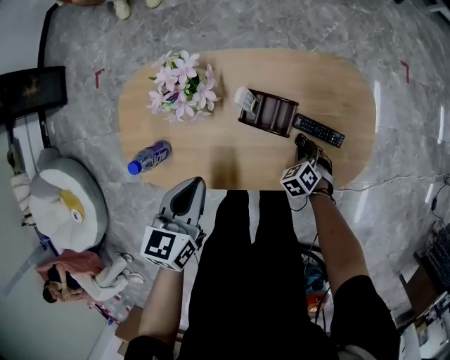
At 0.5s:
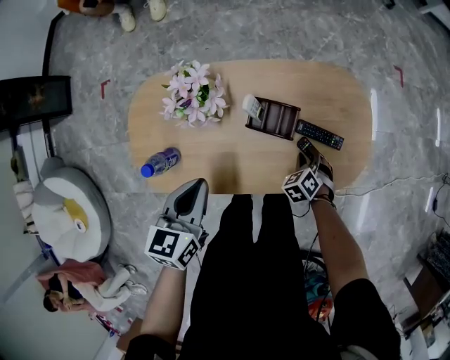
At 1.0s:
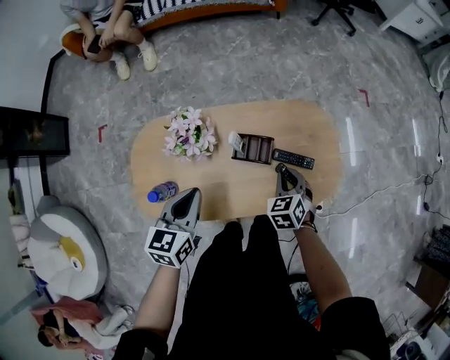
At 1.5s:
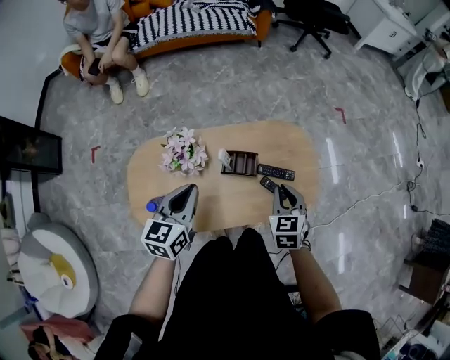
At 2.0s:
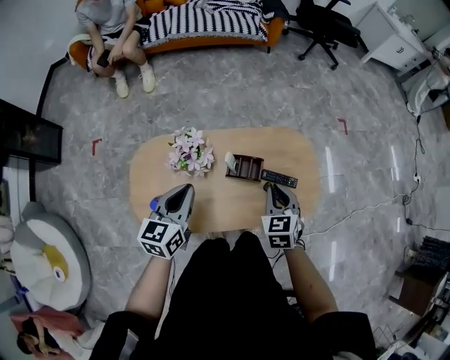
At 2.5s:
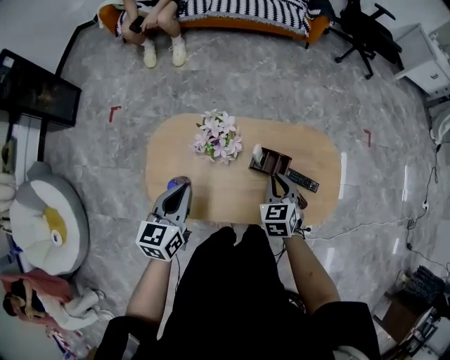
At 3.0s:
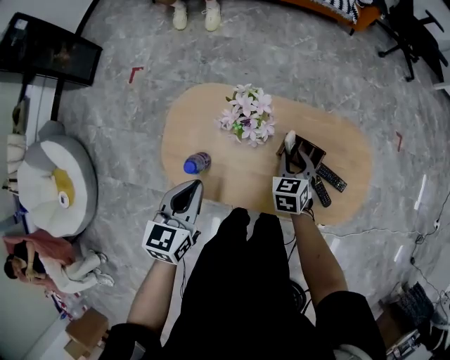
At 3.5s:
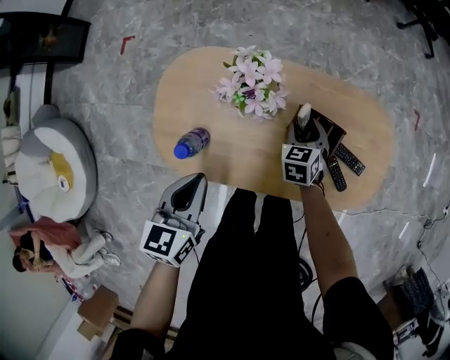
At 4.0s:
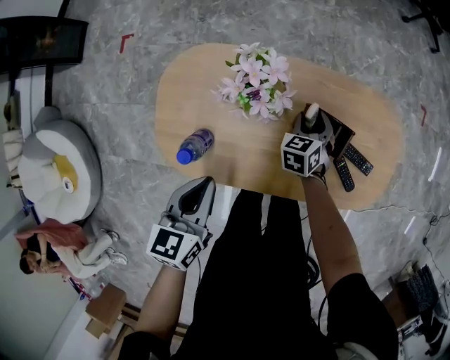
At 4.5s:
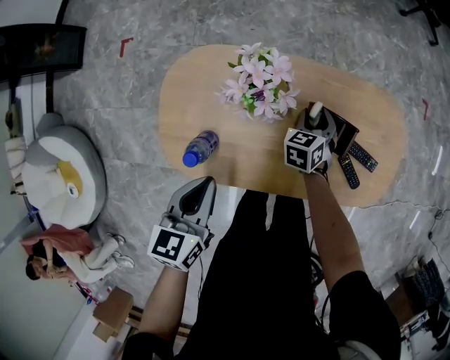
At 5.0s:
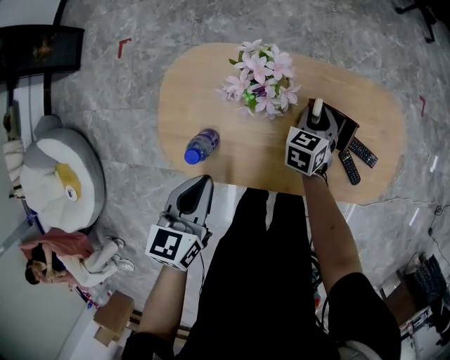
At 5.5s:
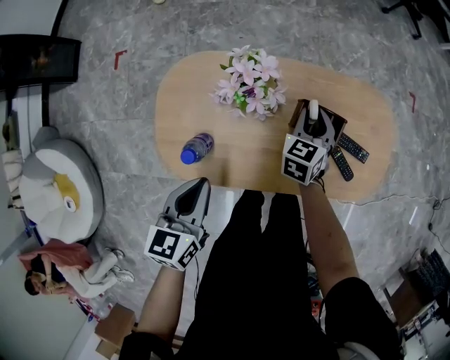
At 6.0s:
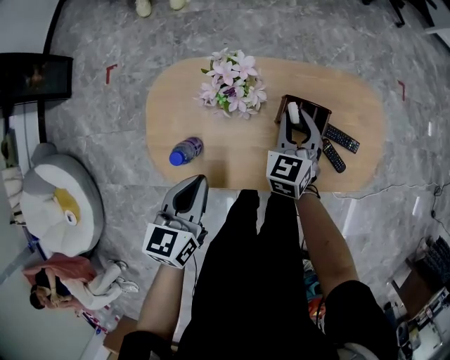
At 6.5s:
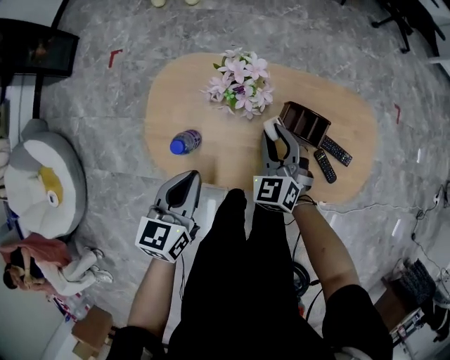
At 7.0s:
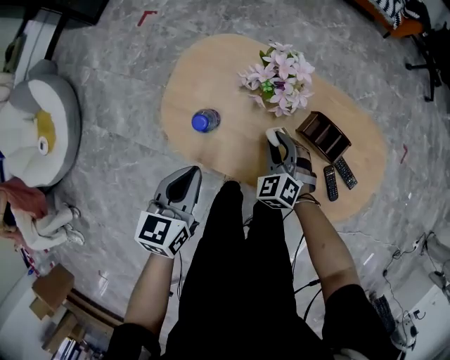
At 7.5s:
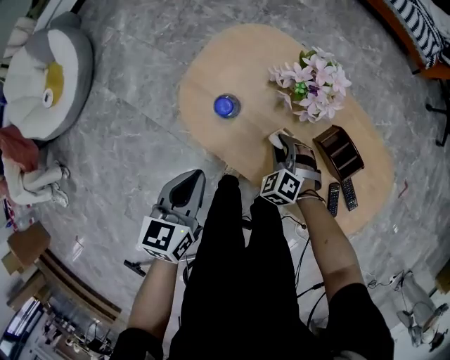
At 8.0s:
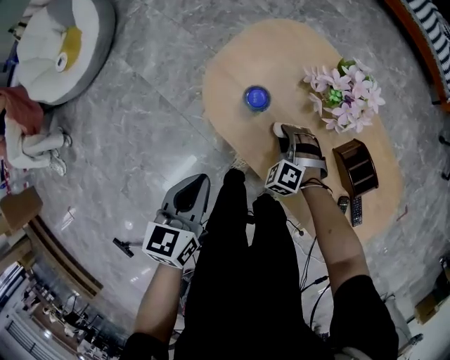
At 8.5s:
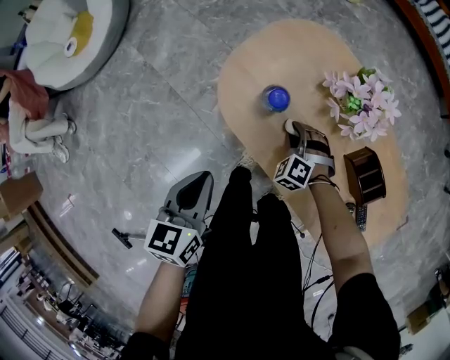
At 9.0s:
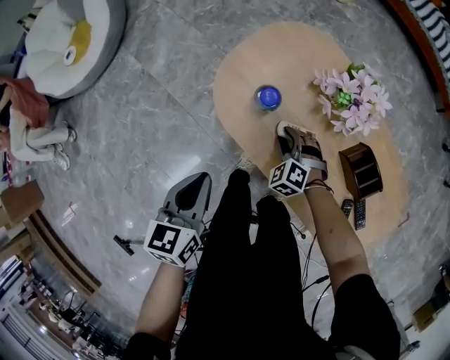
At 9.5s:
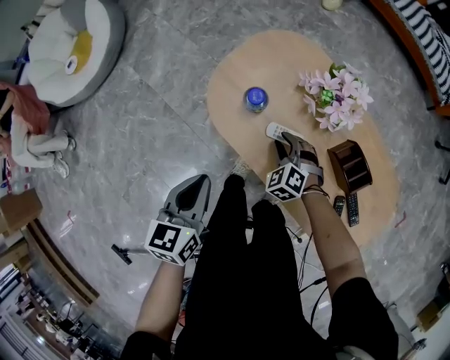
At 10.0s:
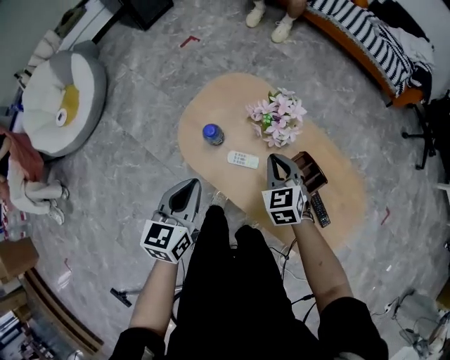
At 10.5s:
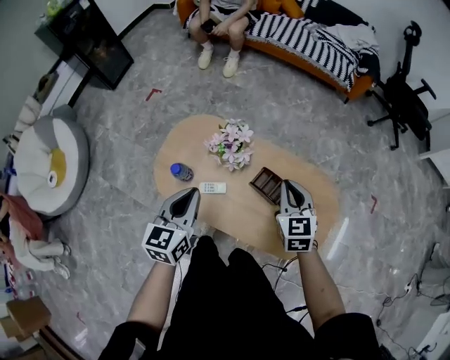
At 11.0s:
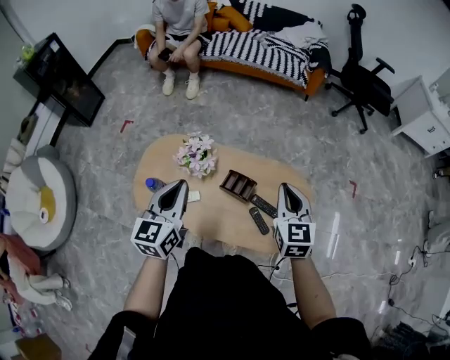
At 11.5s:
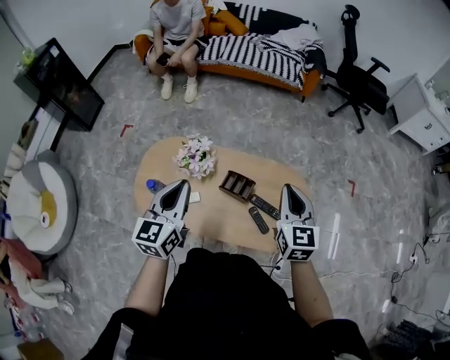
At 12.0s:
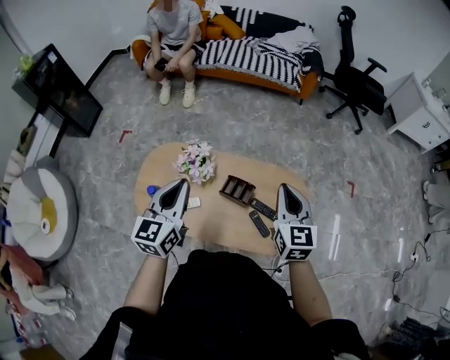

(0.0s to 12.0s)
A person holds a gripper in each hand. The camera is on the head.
0.0s - 2.0s: The right gripper moves upward, about 35 cm, and tilts its fingers roughly 30 degrees upward. The left gripper moves upward and to the left, approximately 15 cm.
2.0s - 4.0s: The left gripper goes approximately 15 cm downward, backward and to the left, and changes its angle by some 20 degrees, while the right gripper heads downward, to the left and forward, covering some 30 cm, and opens its fingers.
4.0s - 6.0s: The right gripper heads upward, covering approximately 15 cm, and closes its fingers.
6.0s - 8.0s: The right gripper shifts by some 30 cm, and rolls counterclockwise, seen from behind, by about 80 degrees. The left gripper moves roughly 20 cm, and swivels approximately 40 degrees.
8.0s - 10.0s: The right gripper heads upward and to the right, covering roughly 25 cm, rolls clockwise, seen from behind, by roughly 50 degrees, and closes. Meanwhile the left gripper heads upward and to the right, covering some 15 cm.
10.0s - 12.0s: The right gripper moves roughly 40 cm, and swivels about 50 degrees. The left gripper changes place by approximately 25 cm, and swivels about 30 degrees.

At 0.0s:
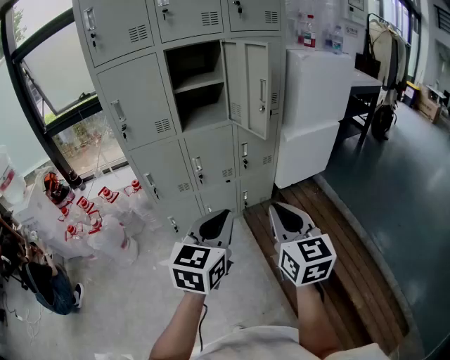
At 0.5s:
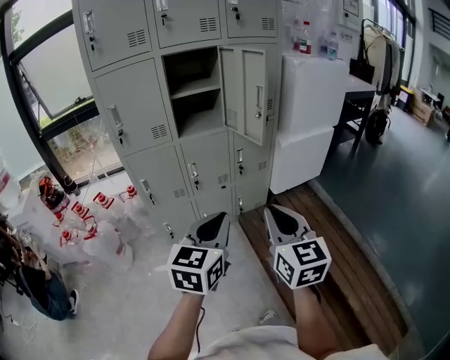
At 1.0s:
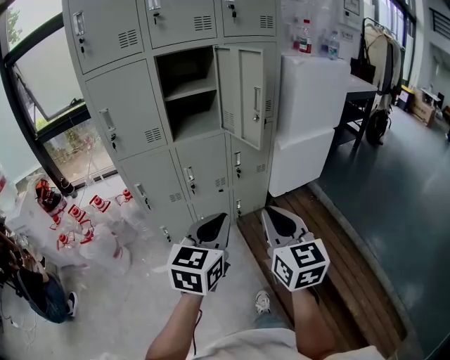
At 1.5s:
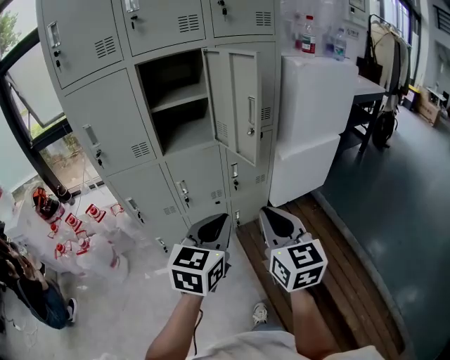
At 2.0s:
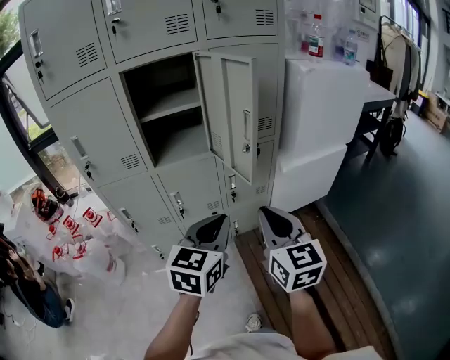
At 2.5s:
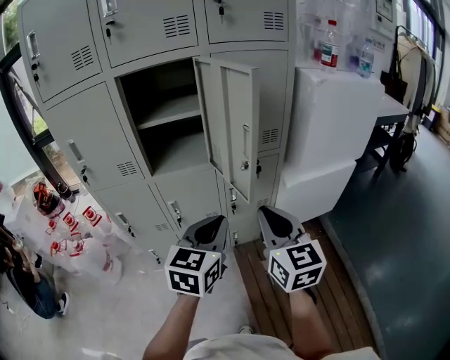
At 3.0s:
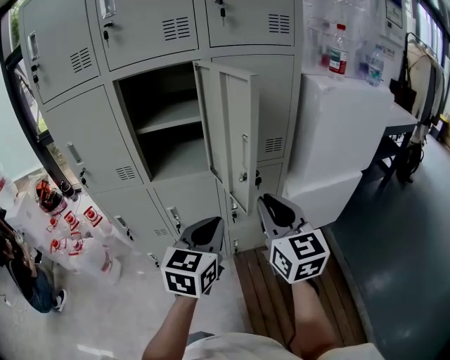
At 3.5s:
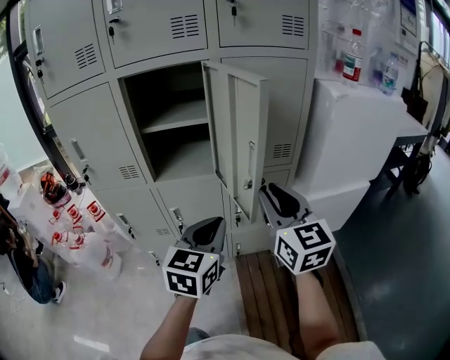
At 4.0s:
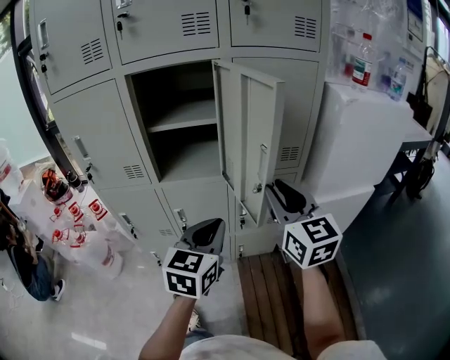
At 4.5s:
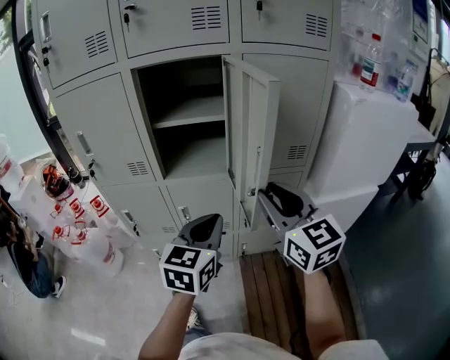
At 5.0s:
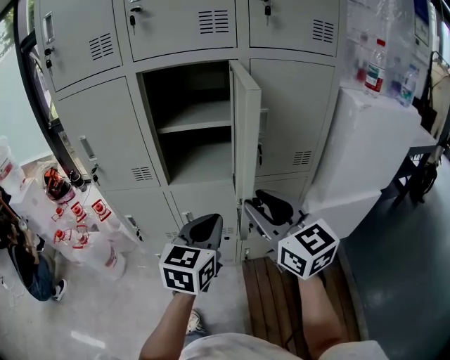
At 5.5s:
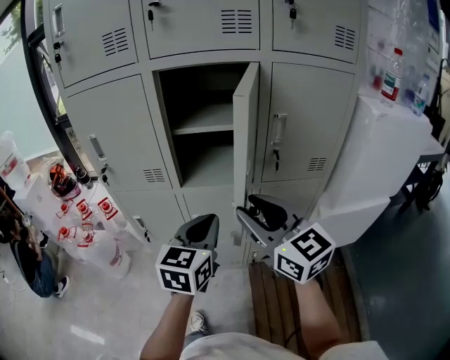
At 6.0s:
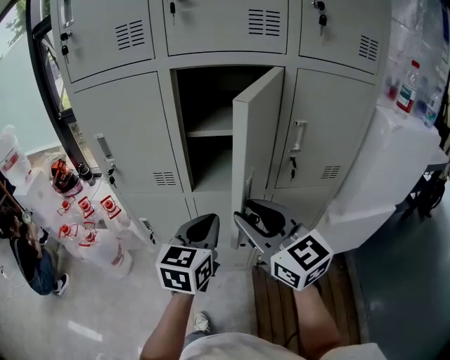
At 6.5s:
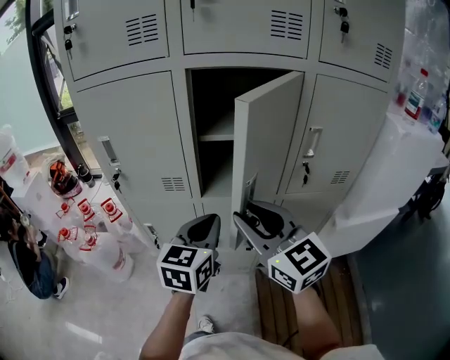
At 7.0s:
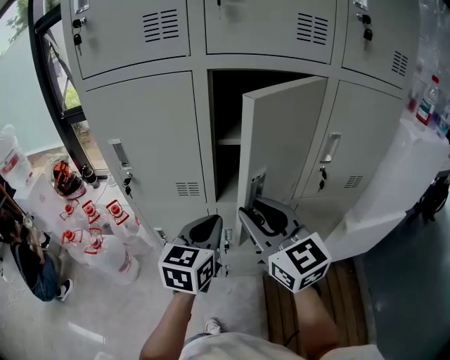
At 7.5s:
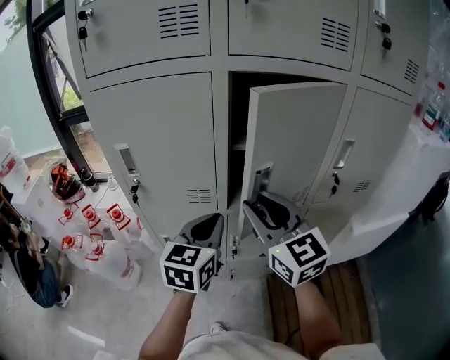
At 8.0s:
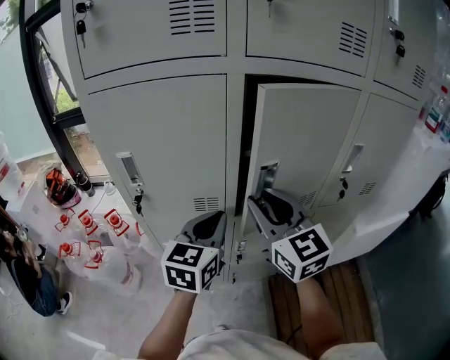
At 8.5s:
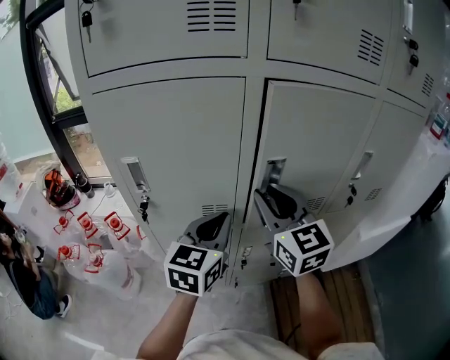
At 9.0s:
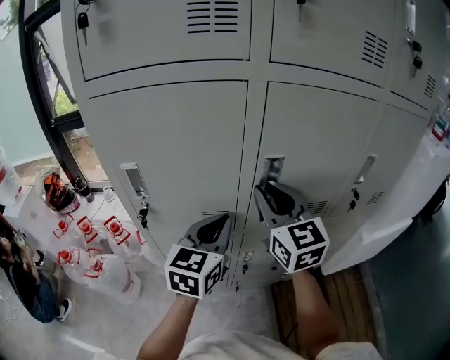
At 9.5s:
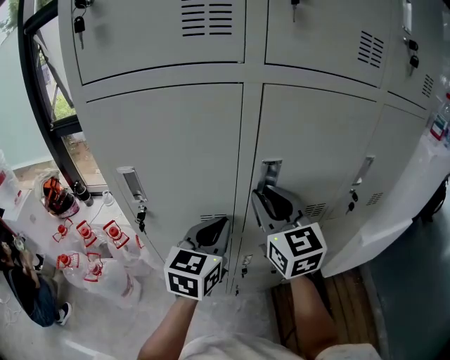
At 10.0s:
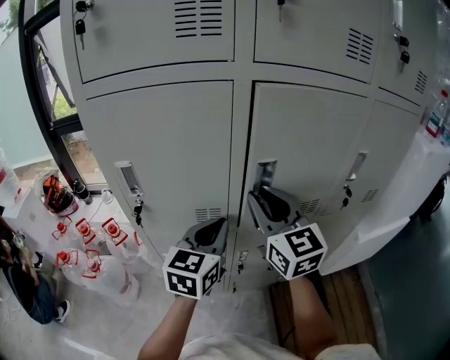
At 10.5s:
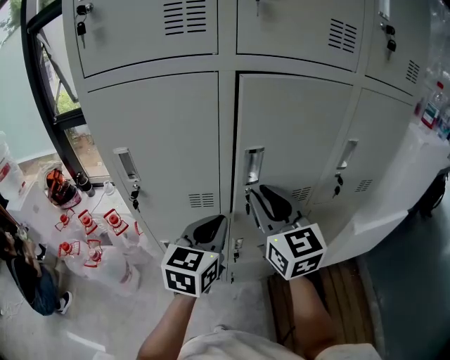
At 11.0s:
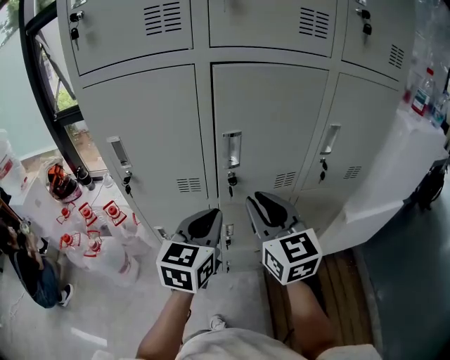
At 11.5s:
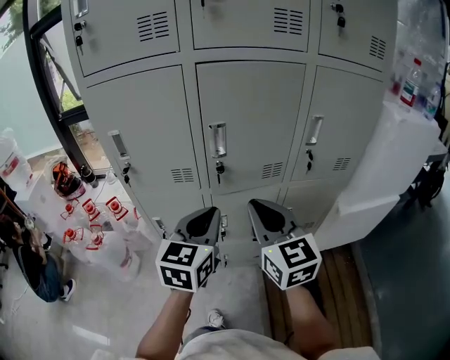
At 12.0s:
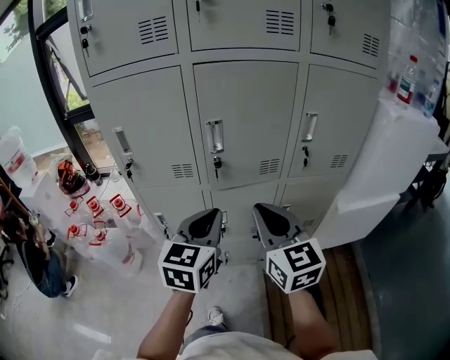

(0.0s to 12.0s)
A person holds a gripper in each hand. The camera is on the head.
0.0s - 2.0s: Both grippers travel together forward, roughly 25 cm.
2.0s - 4.0s: Both grippers move forward, approximately 15 cm.
4.0s - 6.0s: The left gripper is displaced to the left and forward by approximately 15 cm. Meanwhile the right gripper goes approximately 20 cm to the left, and swivels roughly 20 degrees.
6.0s - 8.0s: The right gripper moves forward and to the left, some 20 cm, while the left gripper heads to the left and forward, covering about 15 cm.
10.0s - 12.0s: The grippers both shift backward and to the right by approximately 20 cm.

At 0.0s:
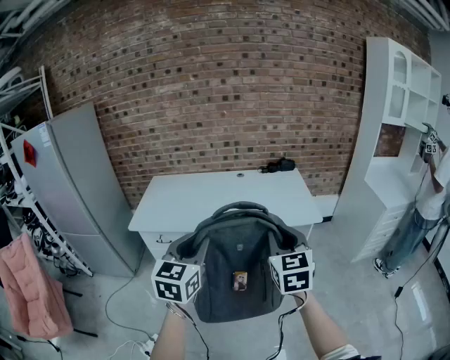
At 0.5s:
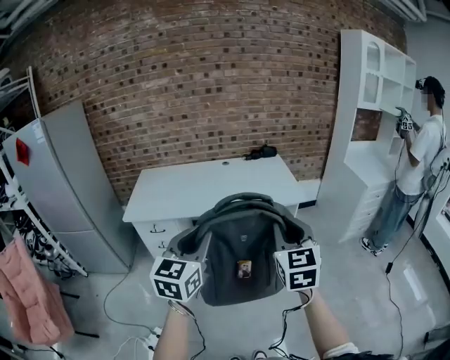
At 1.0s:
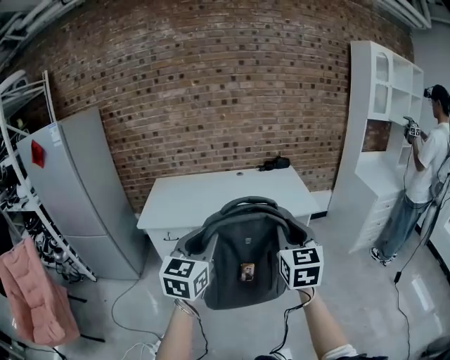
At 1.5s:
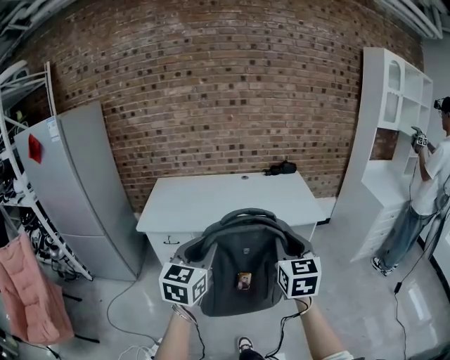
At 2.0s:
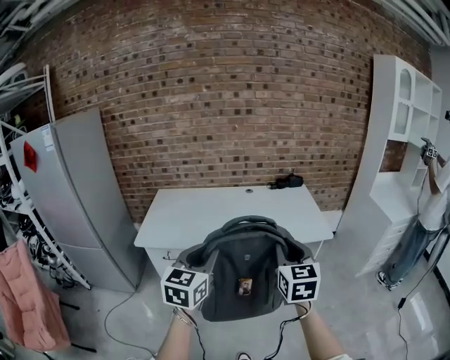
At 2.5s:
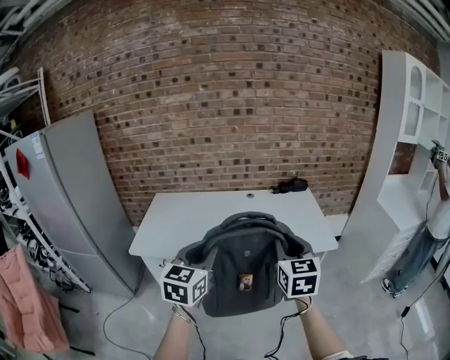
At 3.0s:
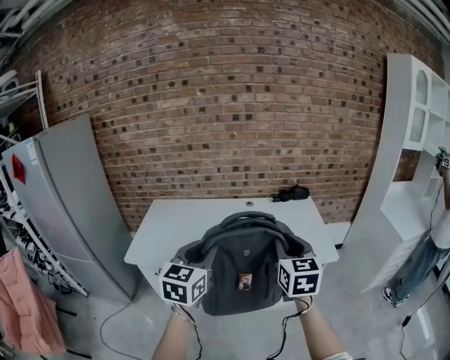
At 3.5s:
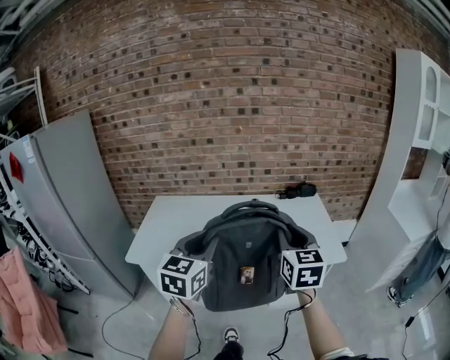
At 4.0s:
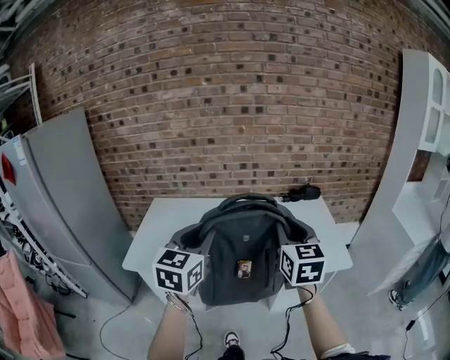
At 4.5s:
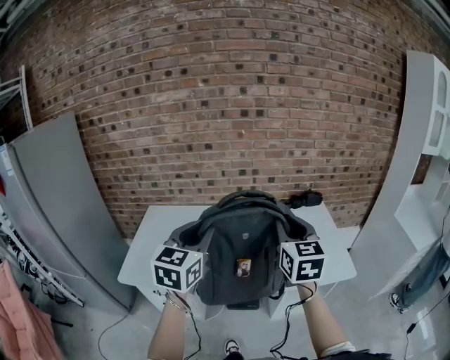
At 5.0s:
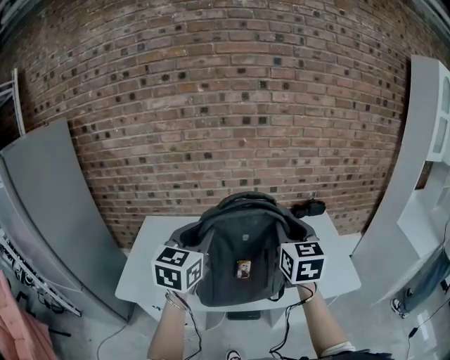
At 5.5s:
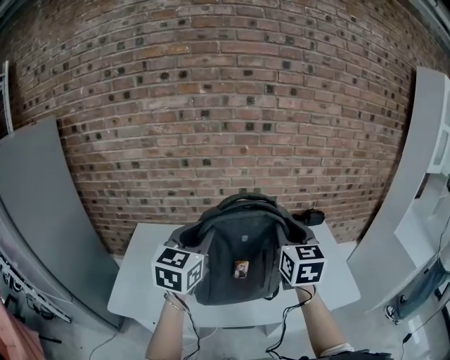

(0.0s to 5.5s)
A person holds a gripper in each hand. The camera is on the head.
0.0s - 2.0s: Both grippers travel together to the left, about 10 cm. The left gripper moves some 10 cm backward and comes back. Meanwhile the right gripper goes backward and returns, about 10 cm each way.
2.0s - 3.5s: The grippers both shift forward by some 20 cm.
3.5s - 5.5s: The left gripper goes approximately 25 cm forward. The right gripper travels forward and to the left by some 30 cm.
